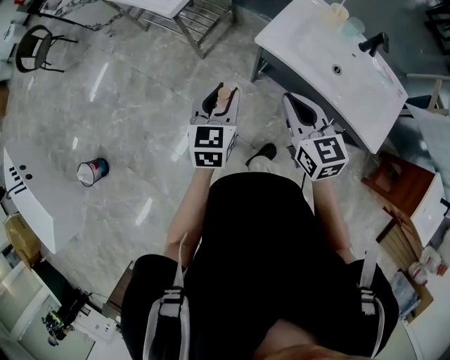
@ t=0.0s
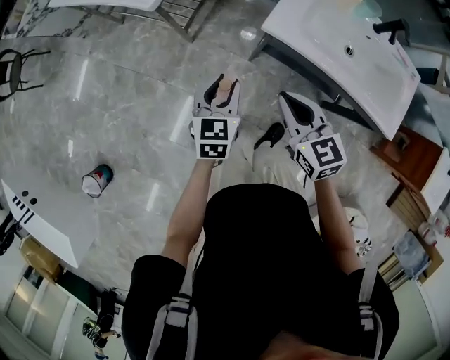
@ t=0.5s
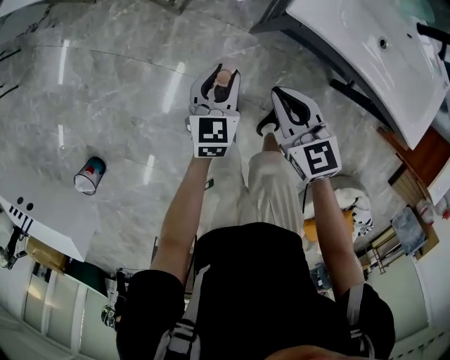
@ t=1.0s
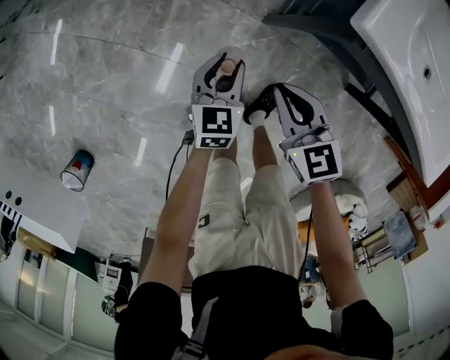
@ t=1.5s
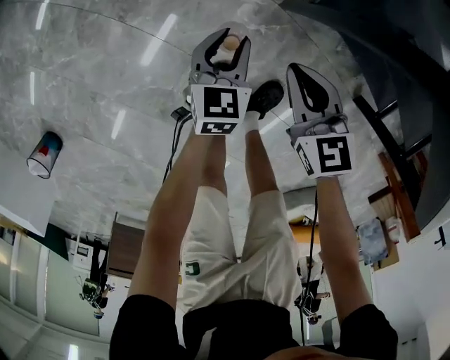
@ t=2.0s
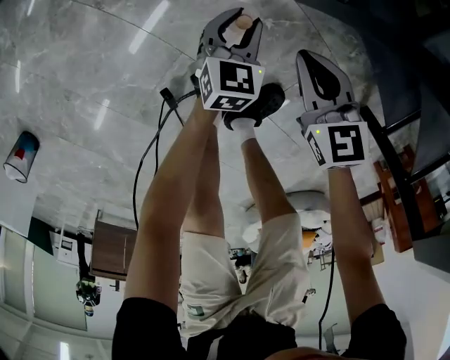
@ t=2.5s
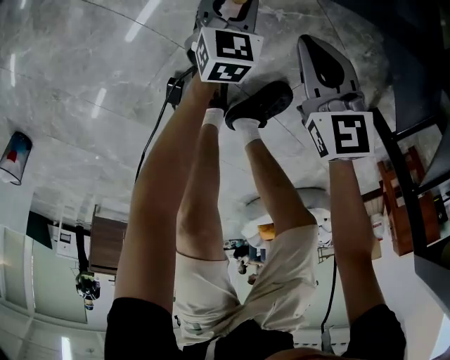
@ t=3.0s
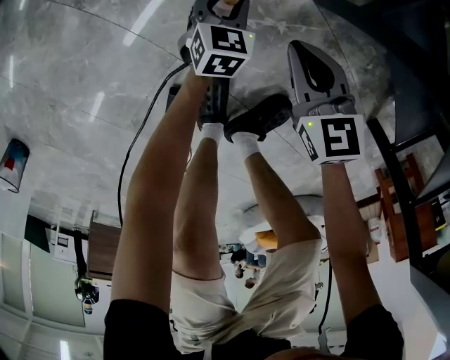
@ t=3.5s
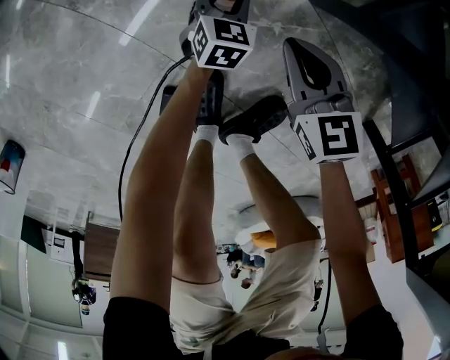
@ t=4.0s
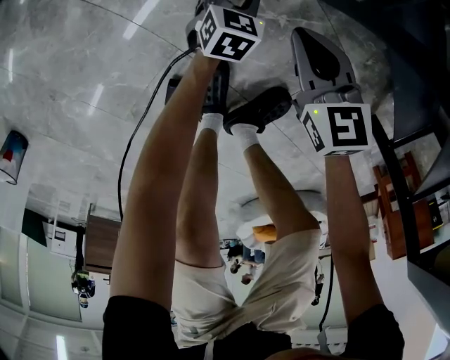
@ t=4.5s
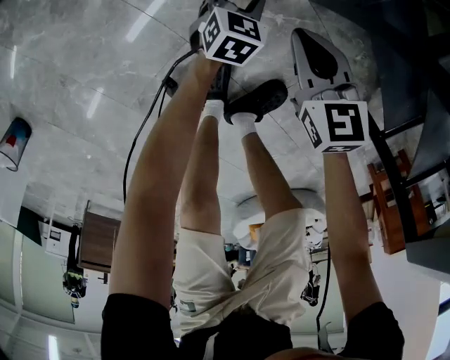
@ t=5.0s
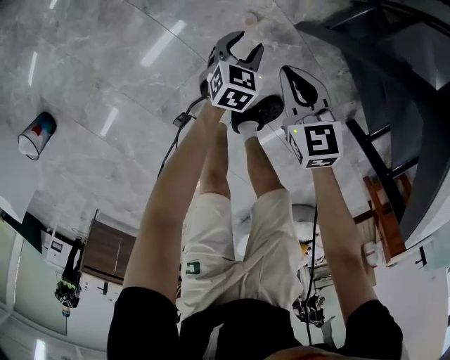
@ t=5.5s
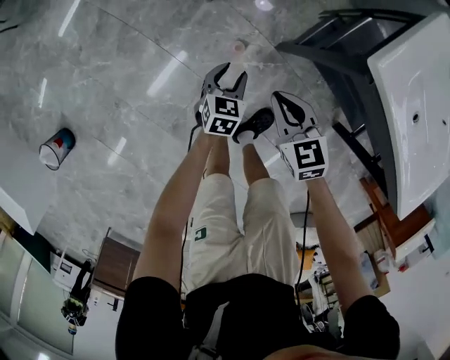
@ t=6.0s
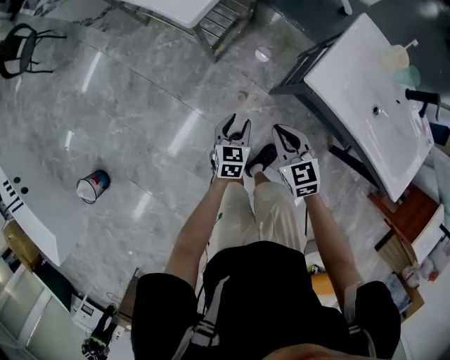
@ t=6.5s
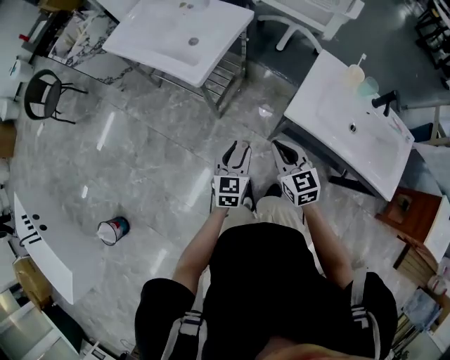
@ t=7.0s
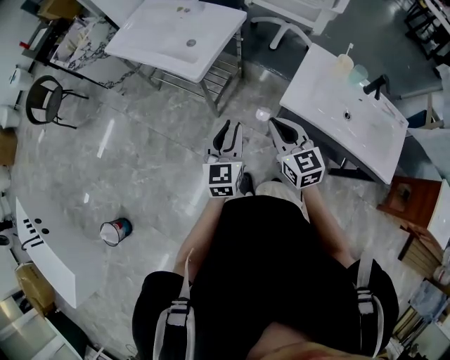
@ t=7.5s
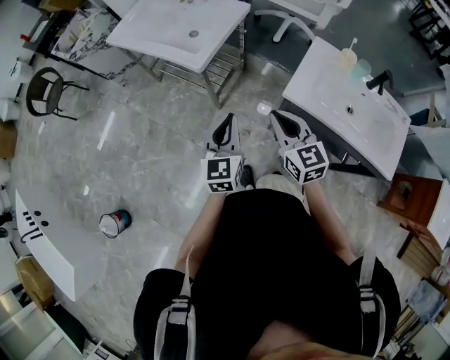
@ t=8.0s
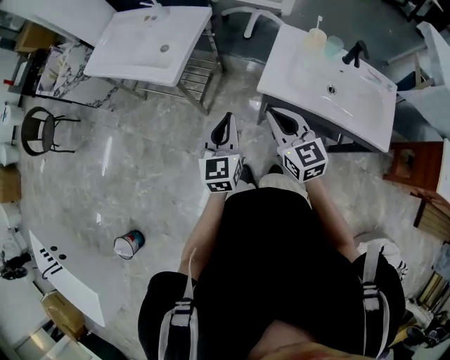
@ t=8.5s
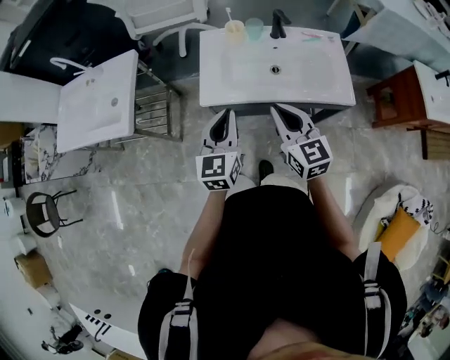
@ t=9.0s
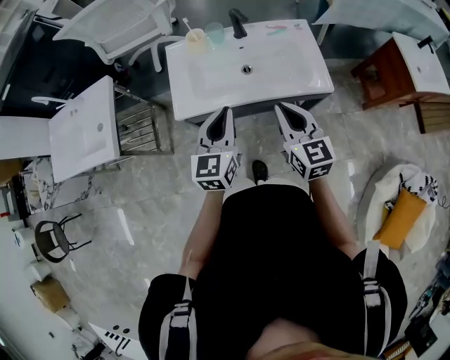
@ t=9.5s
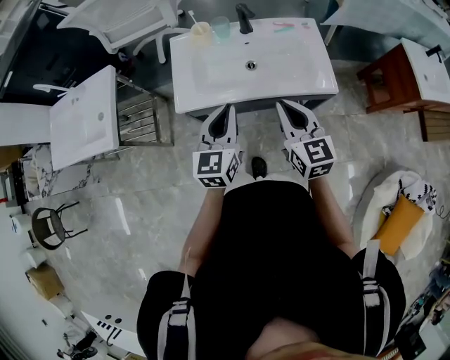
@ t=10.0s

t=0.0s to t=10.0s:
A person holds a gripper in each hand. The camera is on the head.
t=0.0s to t=2.0s: The grippers both shift downward by roughly 60 cm. The right gripper turns by some 20 degrees.
t=2.0s to t=4.0s: The two grippers go roughly 30 cm downward.
t=4.0s to t=6.0s: Both grippers move upward, roughly 40 cm.
t=6.0s to t=8.0s: Both grippers travel together upward, approximately 50 cm. The right gripper turns by some 30 degrees. Meanwhile the left gripper tilts its fingers roughly 40 degrees upward, and closes.
t=8.0s to t=10.0s: The left gripper ends up some 40 cm from where it was, and rotates about 40 degrees. Meanwhile the right gripper changes place by about 40 cm, and swivels roughly 40 degrees.

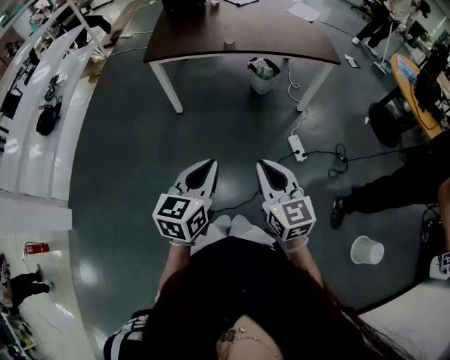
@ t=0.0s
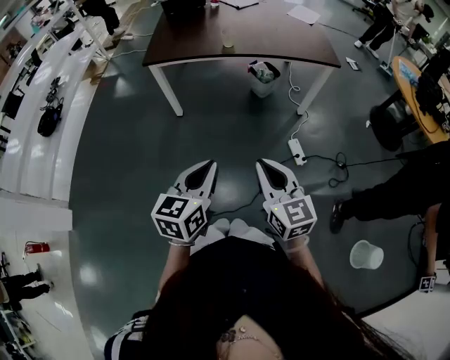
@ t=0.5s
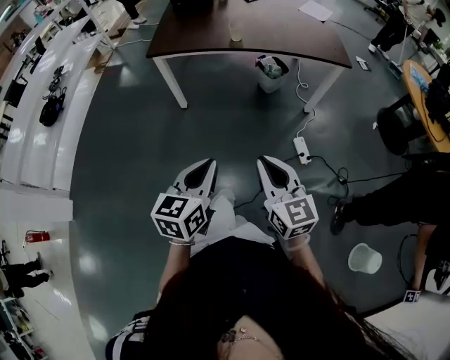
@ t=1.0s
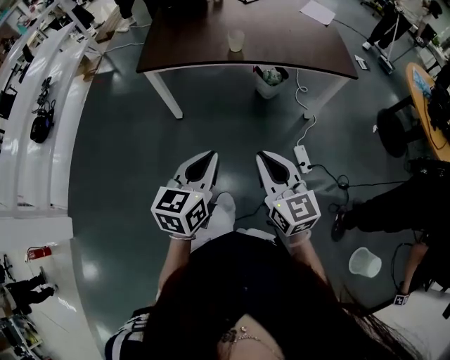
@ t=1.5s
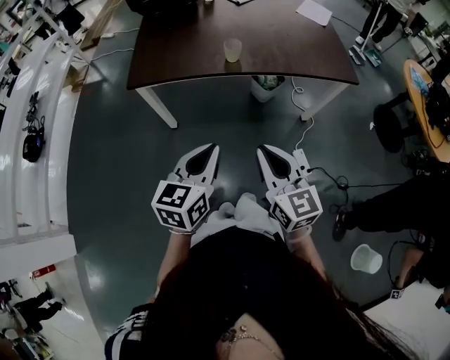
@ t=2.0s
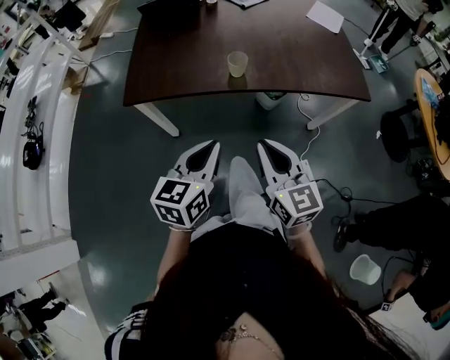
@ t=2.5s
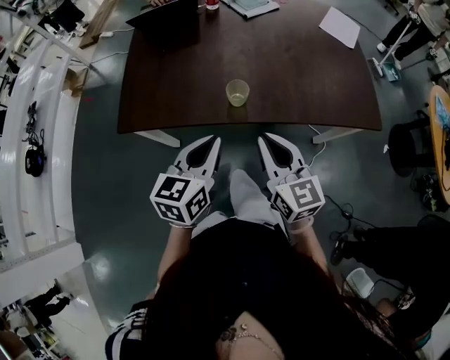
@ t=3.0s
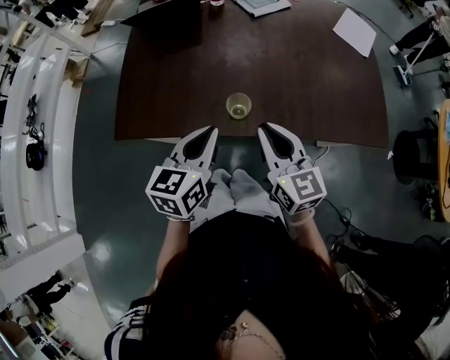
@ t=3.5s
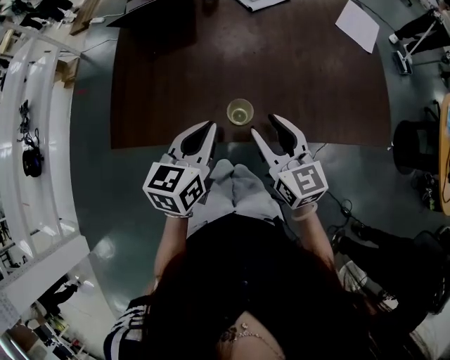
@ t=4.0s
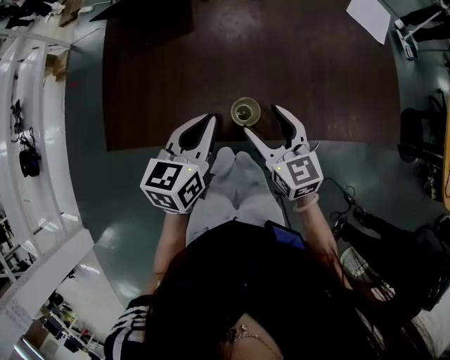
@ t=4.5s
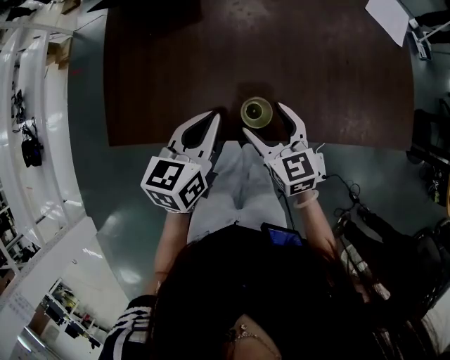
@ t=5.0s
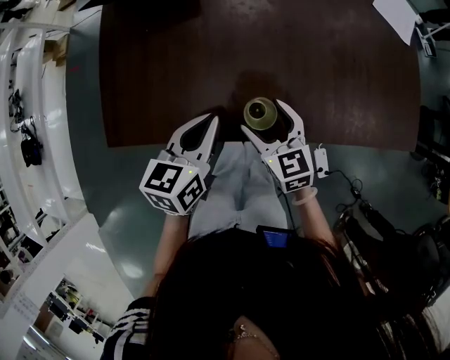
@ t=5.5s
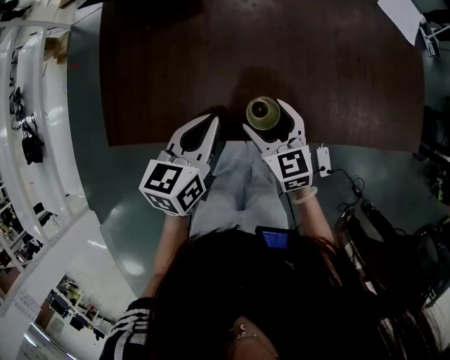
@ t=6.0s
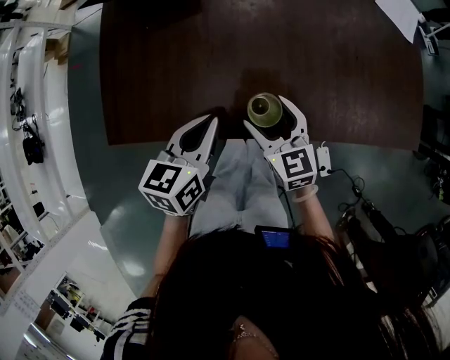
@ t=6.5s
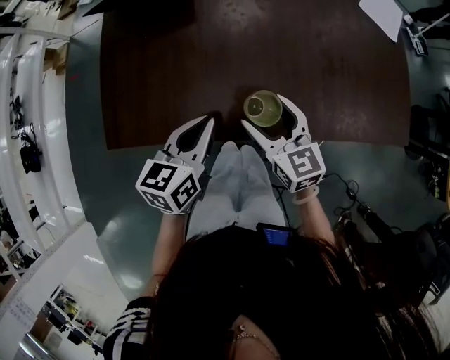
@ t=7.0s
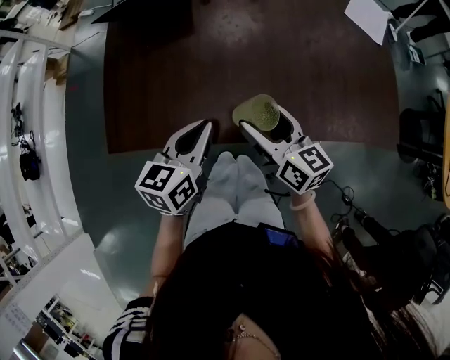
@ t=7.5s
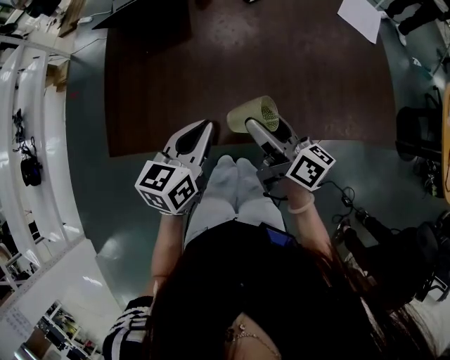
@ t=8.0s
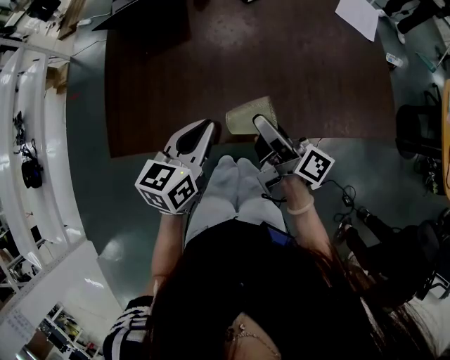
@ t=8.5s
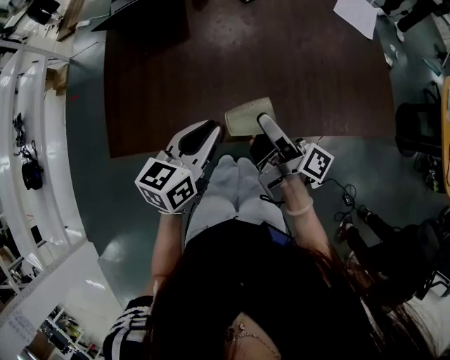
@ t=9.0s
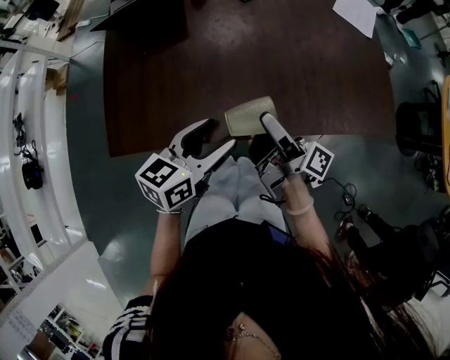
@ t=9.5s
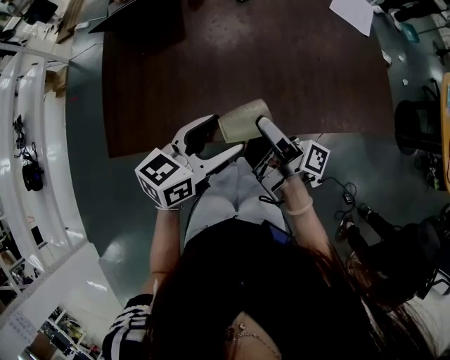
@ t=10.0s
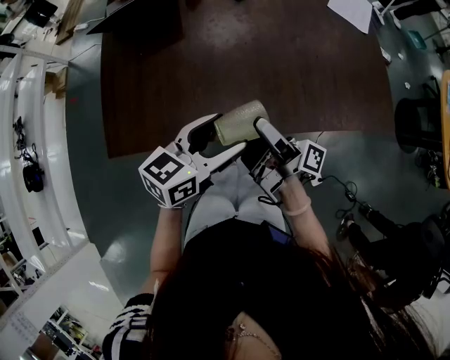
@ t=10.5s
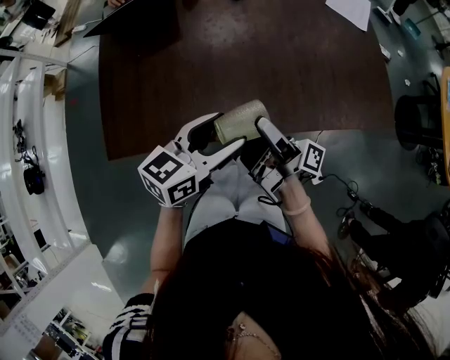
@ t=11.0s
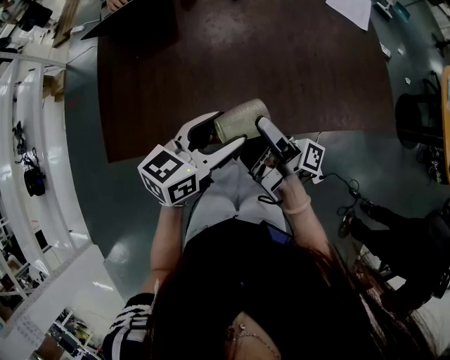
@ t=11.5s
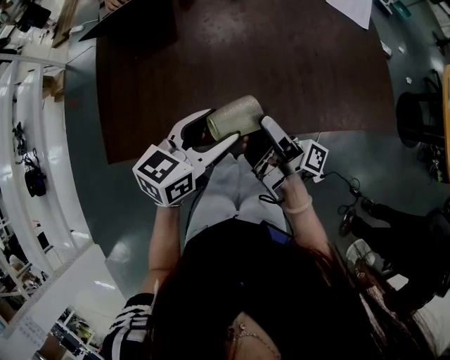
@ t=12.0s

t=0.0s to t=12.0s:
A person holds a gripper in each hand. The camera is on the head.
t=0.0s to t=2.0s: Both grippers move forward, some 30 cm.
t=2.0s to t=4.0s: Both grippers travel together forward, about 40 cm. The right gripper opens.
t=4.0s to t=6.0s: The right gripper is displaced downward by some 15 cm, and opens its fingers. Meanwhile the left gripper travels downward by roughly 10 cm.
t=6.0s to t=8.0s: The left gripper goes about 5 cm upward. The right gripper heads upward, covering about 15 cm, and rolls clockwise, seen from behind, by some 50 degrees.
t=8.0s to t=10.0s: The left gripper heads to the right, covering roughly 5 cm, swivels about 20 degrees, and opens, while the right gripper changes its angle by some 40 degrees.
t=10.0s to t=12.0s: The grippers make only small movements.

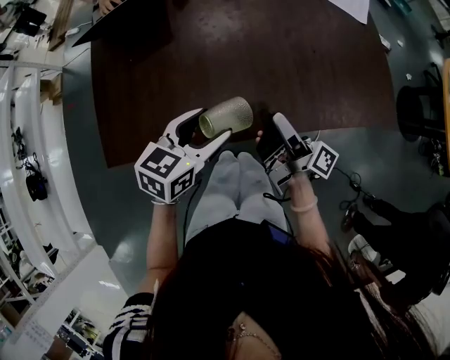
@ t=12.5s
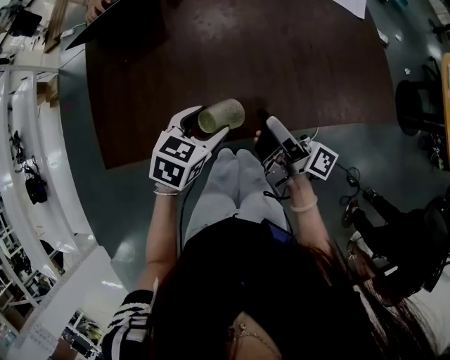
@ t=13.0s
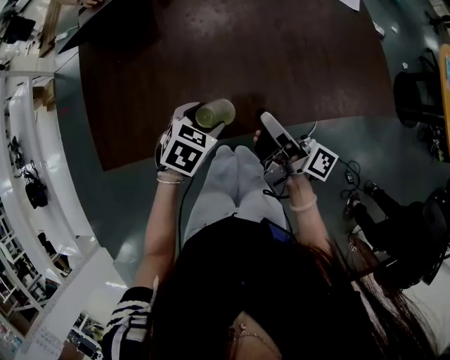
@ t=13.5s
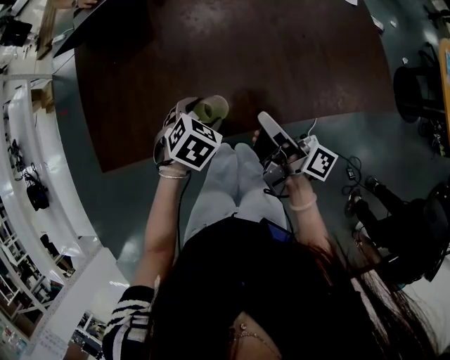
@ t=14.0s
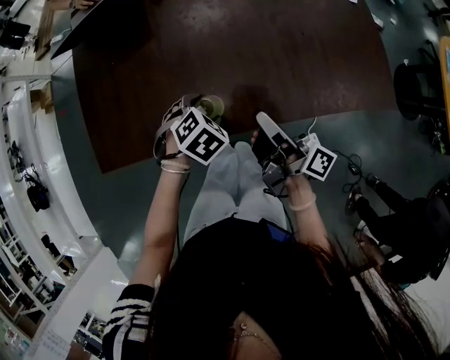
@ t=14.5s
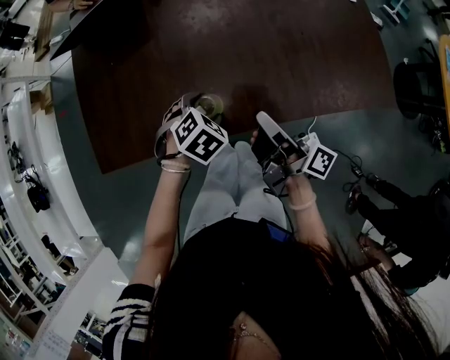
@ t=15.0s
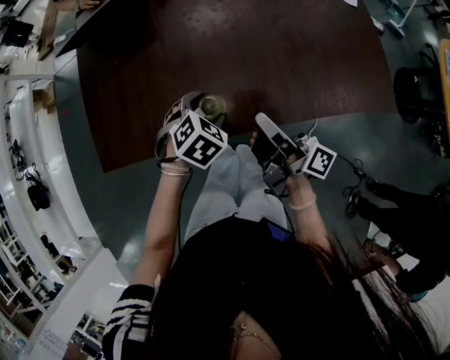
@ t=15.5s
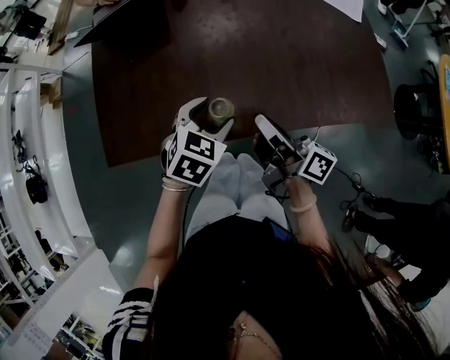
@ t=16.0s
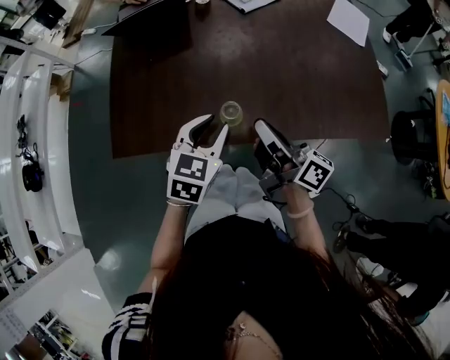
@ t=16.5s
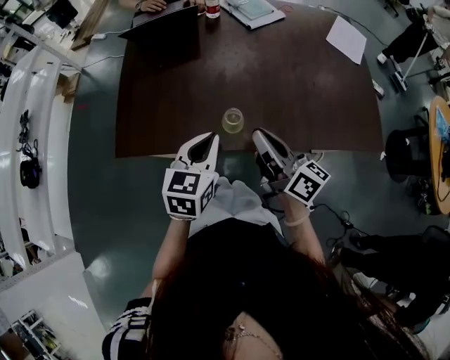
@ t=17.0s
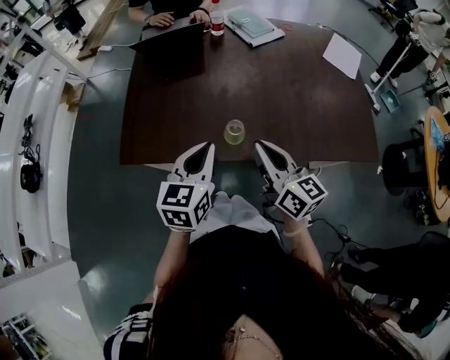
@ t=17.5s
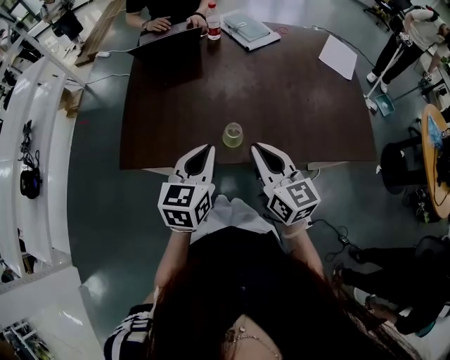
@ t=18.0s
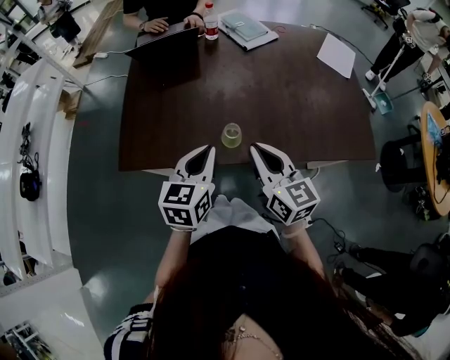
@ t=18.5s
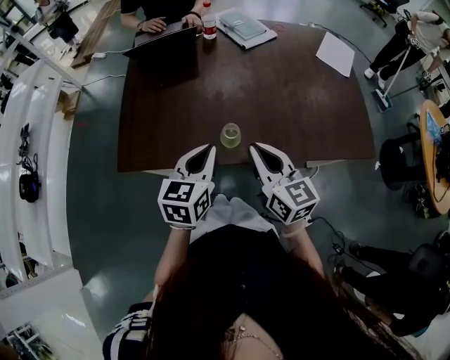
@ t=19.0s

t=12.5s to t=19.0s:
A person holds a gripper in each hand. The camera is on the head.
t=12.5s to t=14.5s: The left gripper heads downward, covering about 15 cm, and points its fingers roughly 40 degrees further downward; the right gripper closes.
t=14.5s to t=17.0s: The right gripper goes some 5 cm upward, and turns by some 30 degrees. Meanwhile the left gripper moves upward and backward, roughly 15 cm, tips its fingers upward by approximately 40 degrees, and closes up.
t=17.0s to t=19.0s: The right gripper rotates some 40 degrees.
